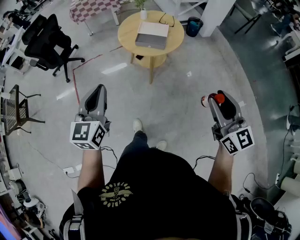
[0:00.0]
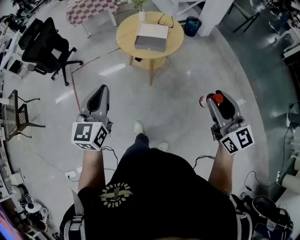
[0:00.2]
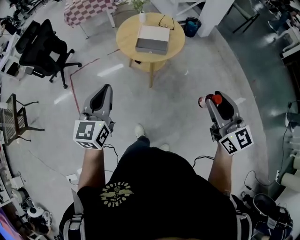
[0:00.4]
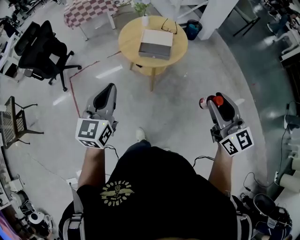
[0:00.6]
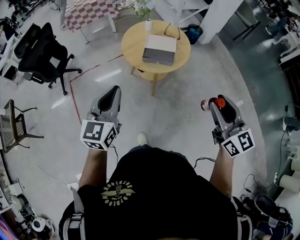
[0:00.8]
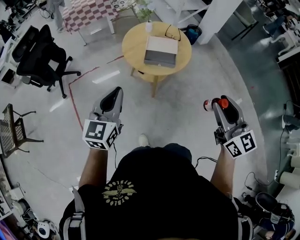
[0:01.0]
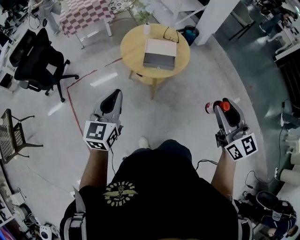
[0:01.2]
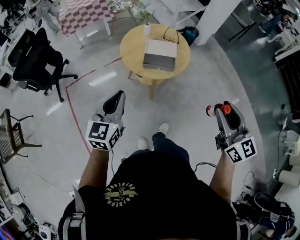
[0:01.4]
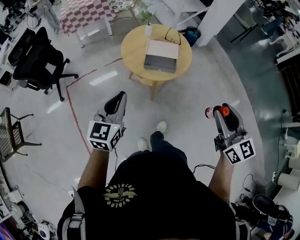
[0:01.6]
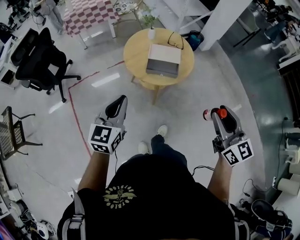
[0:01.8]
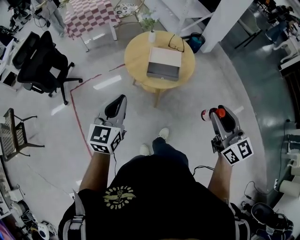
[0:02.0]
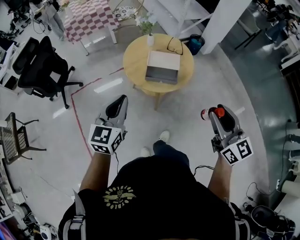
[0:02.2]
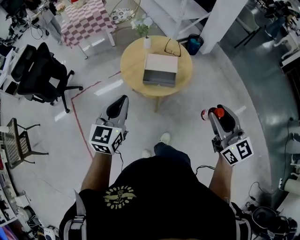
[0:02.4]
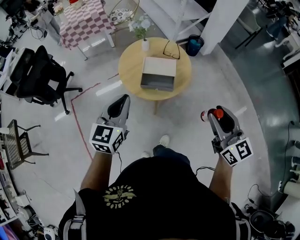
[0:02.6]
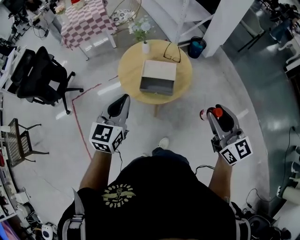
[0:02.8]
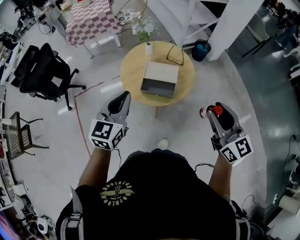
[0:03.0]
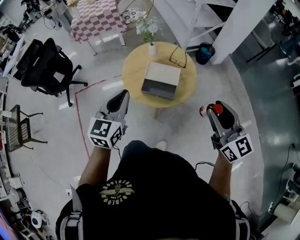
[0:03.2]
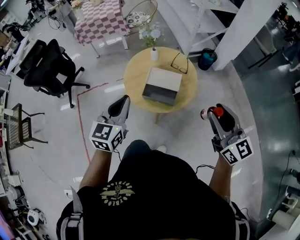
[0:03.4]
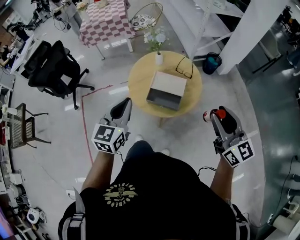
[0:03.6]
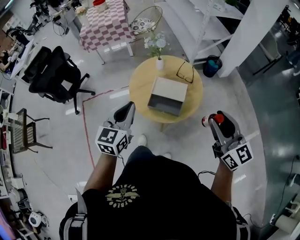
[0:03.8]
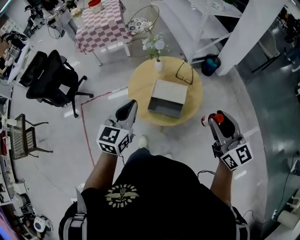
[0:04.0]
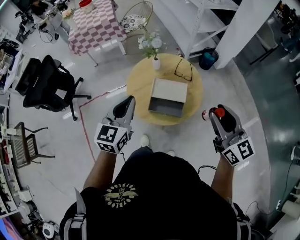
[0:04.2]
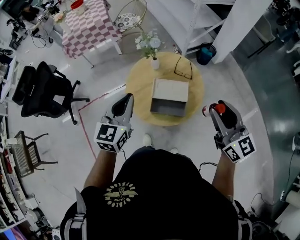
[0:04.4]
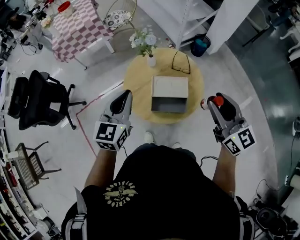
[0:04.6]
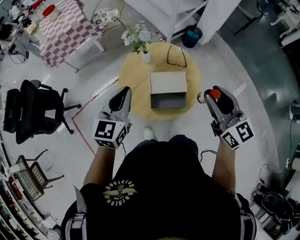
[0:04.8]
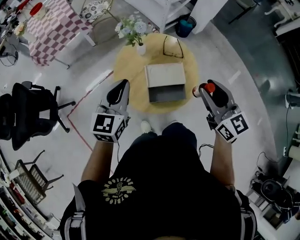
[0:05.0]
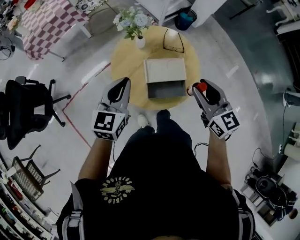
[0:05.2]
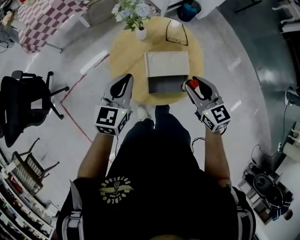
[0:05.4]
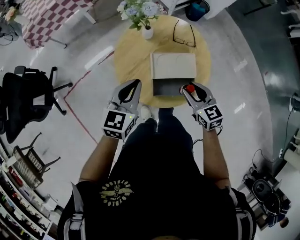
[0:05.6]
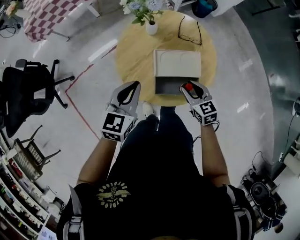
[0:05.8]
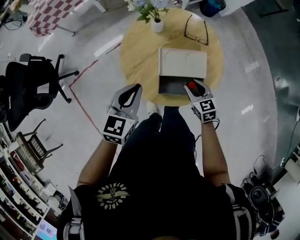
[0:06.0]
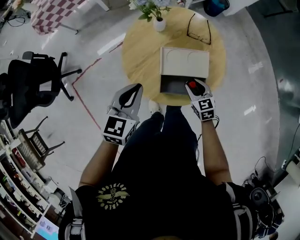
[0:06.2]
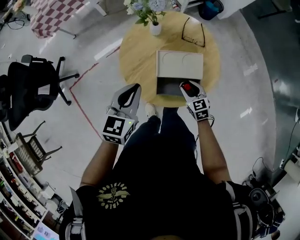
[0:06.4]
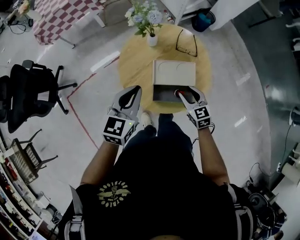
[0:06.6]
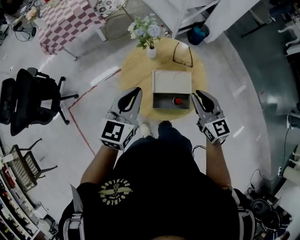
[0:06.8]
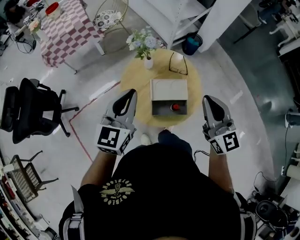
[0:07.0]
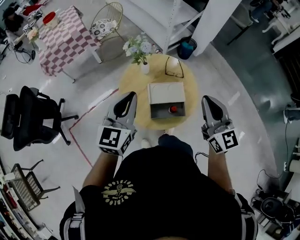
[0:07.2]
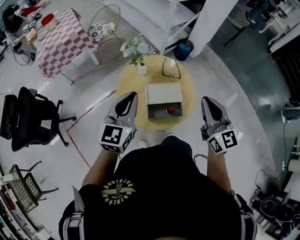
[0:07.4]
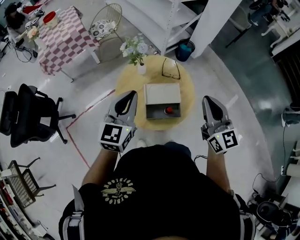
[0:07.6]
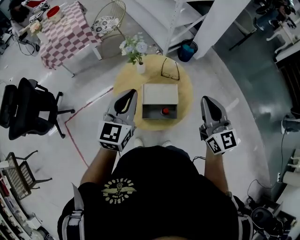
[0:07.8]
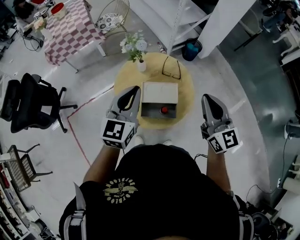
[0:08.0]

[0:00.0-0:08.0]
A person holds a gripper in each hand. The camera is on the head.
0:00.0 to 0:01.6: The left gripper travels forward by some 25 cm; the right gripper is displaced forward and to the left by about 25 cm.
0:01.6 to 0:03.2: The grippers both shift forward and to the right by roughly 20 cm.
0:03.2 to 0:04.8: The left gripper shifts some 20 cm forward, while the right gripper is displaced forward and to the left by about 20 cm.
0:04.8 to 0:06.4: The left gripper heads downward, covering approximately 15 cm. Meanwhile the right gripper moves downward, approximately 40 cm, and points its fingers roughly 40 degrees further downward.
0:06.4 to 0:08.0: The left gripper travels upward and to the right by about 20 cm, and turns by some 20 degrees. Meanwhile the right gripper is displaced upward by about 40 cm, tips its fingers upward by approximately 40 degrees, and closes its fingers.

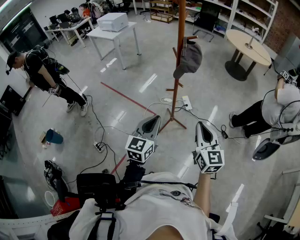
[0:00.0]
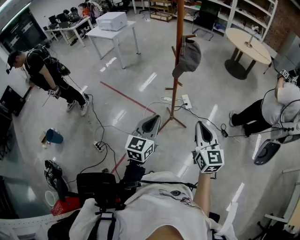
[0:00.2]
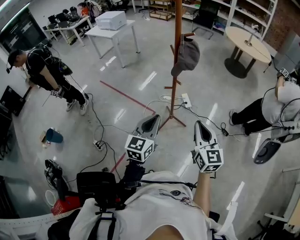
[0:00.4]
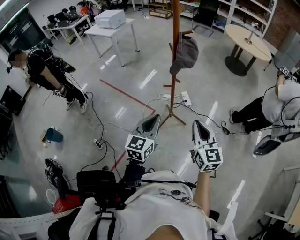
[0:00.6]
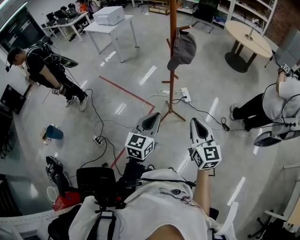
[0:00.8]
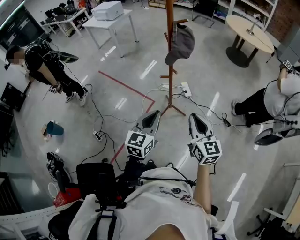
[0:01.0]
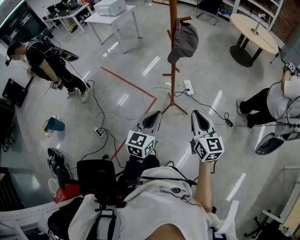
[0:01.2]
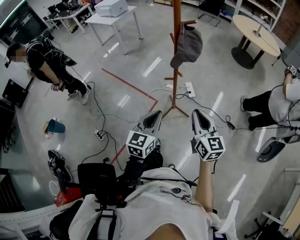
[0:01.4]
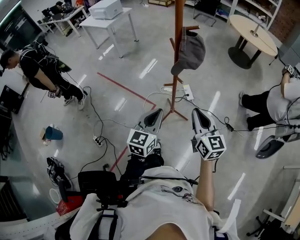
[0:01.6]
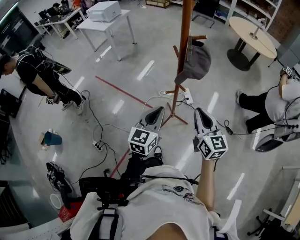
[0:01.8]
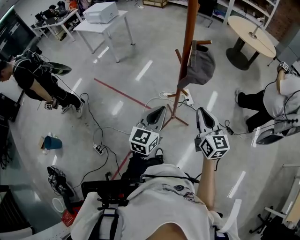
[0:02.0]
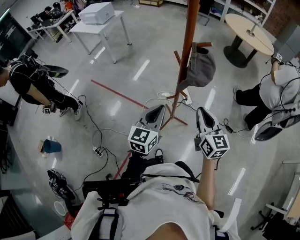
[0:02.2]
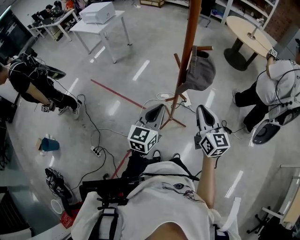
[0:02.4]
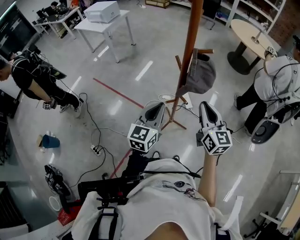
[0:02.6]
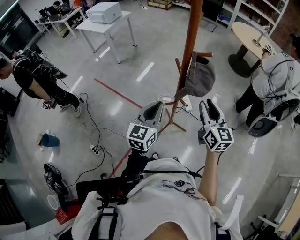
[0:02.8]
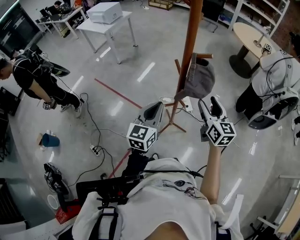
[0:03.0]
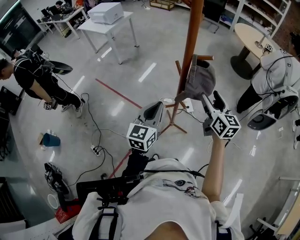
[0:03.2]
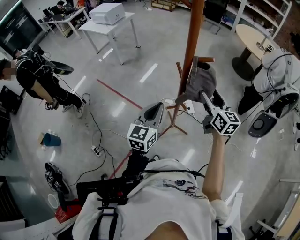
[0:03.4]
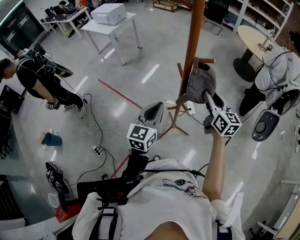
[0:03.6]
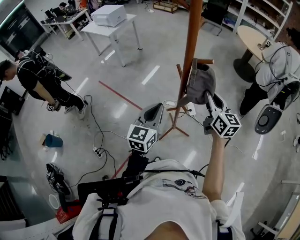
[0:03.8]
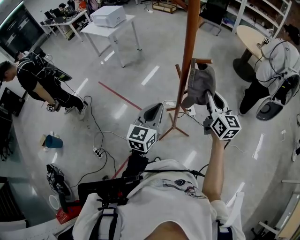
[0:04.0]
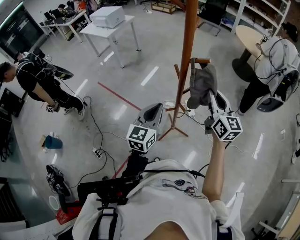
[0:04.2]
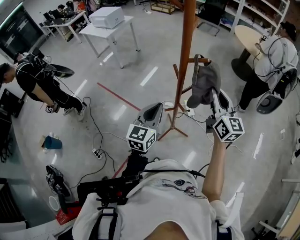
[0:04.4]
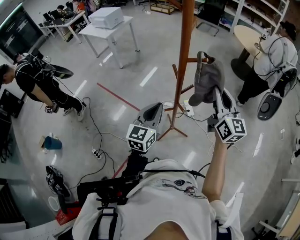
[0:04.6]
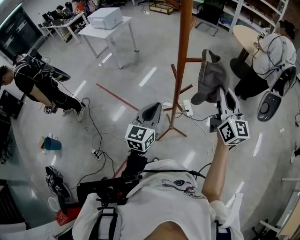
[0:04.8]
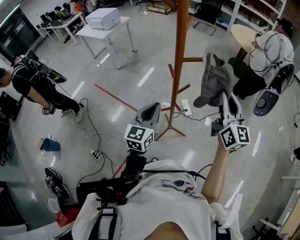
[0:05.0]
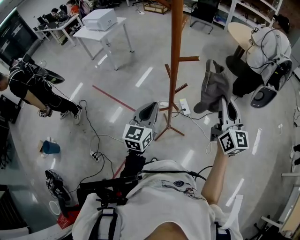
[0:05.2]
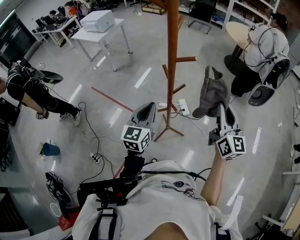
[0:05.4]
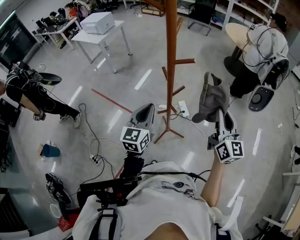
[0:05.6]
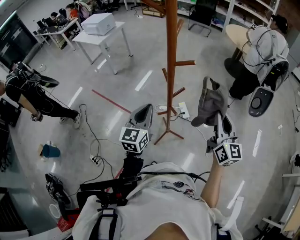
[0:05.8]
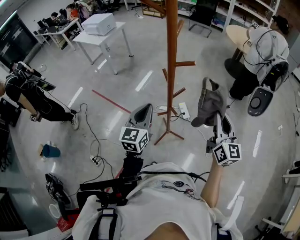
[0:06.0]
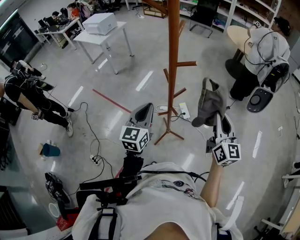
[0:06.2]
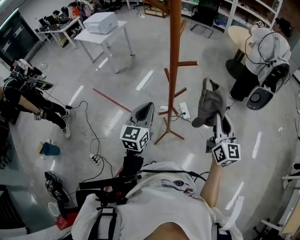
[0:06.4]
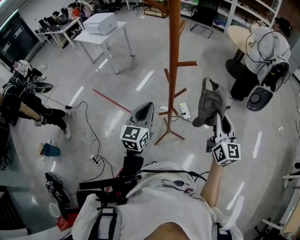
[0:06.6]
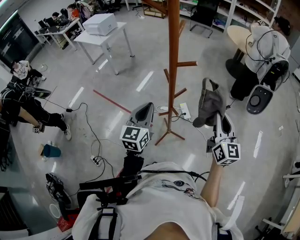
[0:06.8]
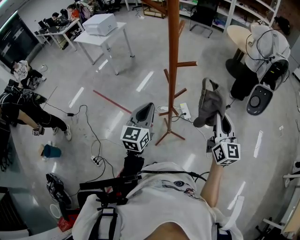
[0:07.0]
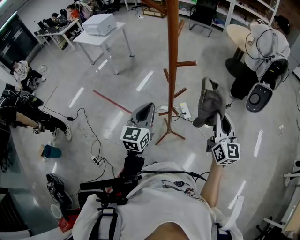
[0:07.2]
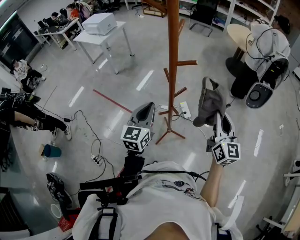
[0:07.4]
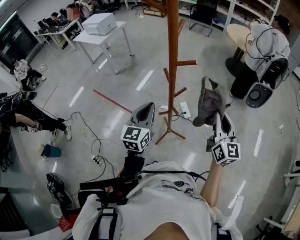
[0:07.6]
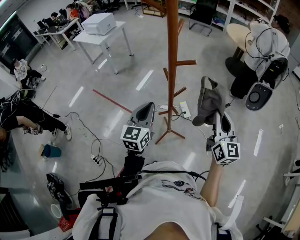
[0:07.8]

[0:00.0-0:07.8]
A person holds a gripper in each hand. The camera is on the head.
0:00.0 to 0:01.6: Both grippers travel together forward, approximately 10 cm.
0:01.6 to 0:03.2: Both grippers move forward, roughly 20 cm. The right gripper opens up.
0:03.2 to 0:04.6: The right gripper travels upward by approximately 10 cm, and closes its fingers.
0:04.6 to 0:06.2: The right gripper heads to the right and backward, covering approximately 10 cm.
0:06.2 to 0:07.8: The two grippers keep their place.

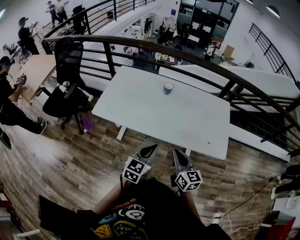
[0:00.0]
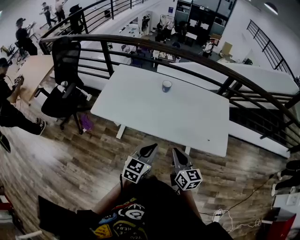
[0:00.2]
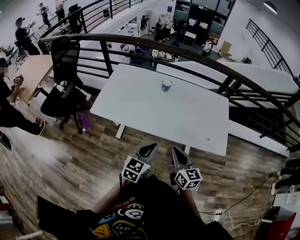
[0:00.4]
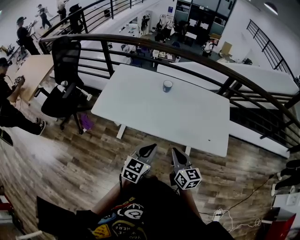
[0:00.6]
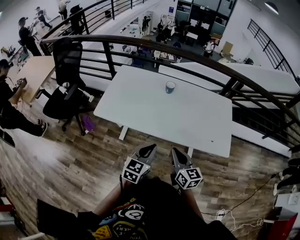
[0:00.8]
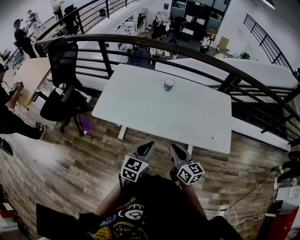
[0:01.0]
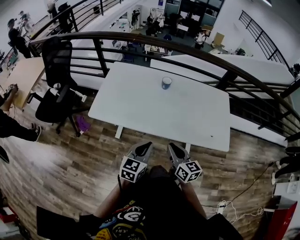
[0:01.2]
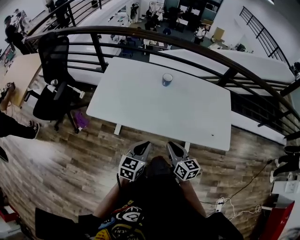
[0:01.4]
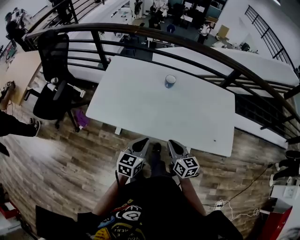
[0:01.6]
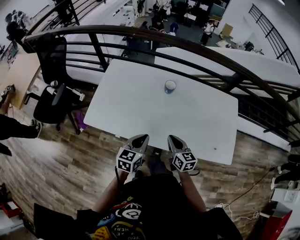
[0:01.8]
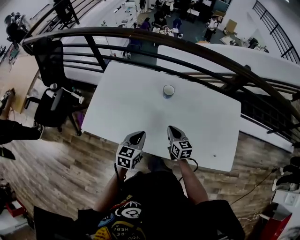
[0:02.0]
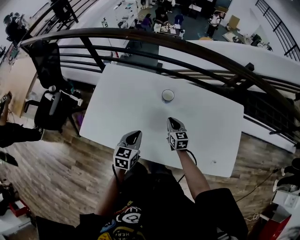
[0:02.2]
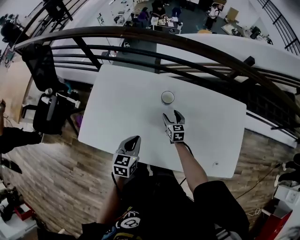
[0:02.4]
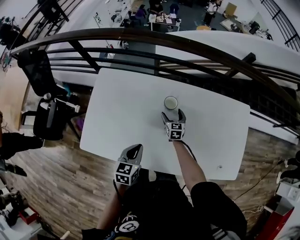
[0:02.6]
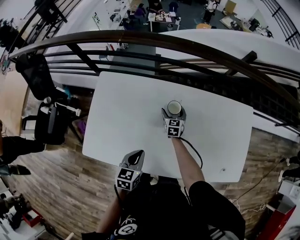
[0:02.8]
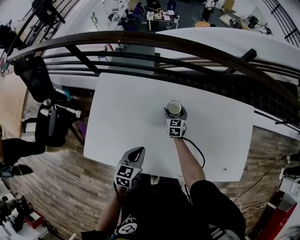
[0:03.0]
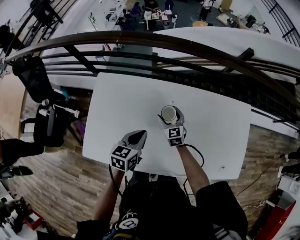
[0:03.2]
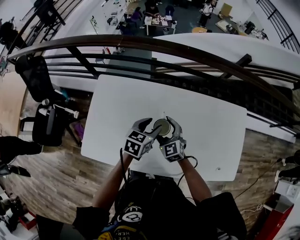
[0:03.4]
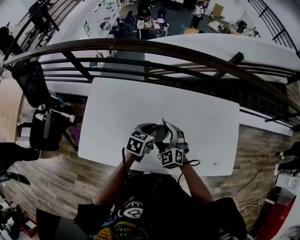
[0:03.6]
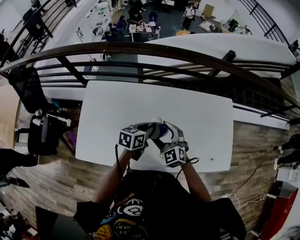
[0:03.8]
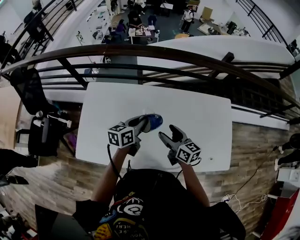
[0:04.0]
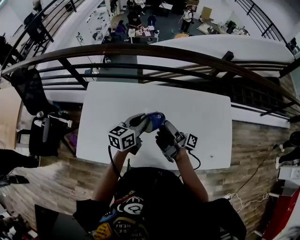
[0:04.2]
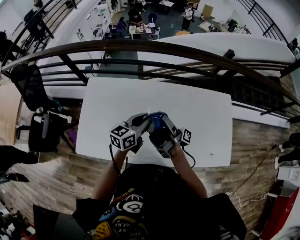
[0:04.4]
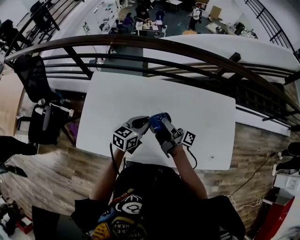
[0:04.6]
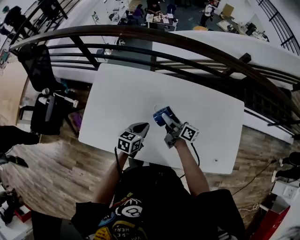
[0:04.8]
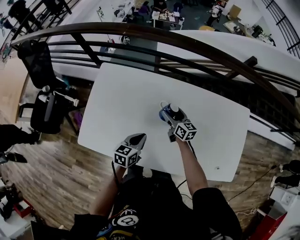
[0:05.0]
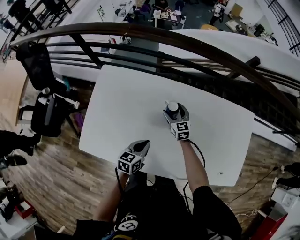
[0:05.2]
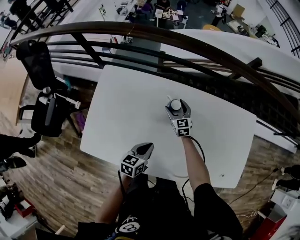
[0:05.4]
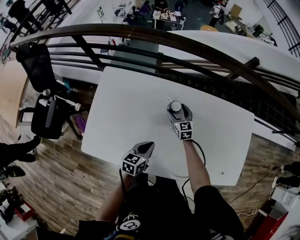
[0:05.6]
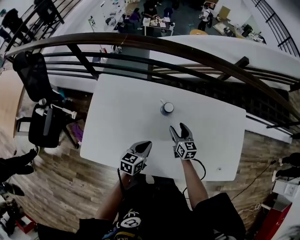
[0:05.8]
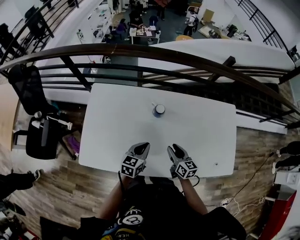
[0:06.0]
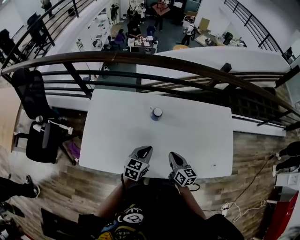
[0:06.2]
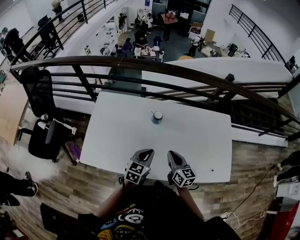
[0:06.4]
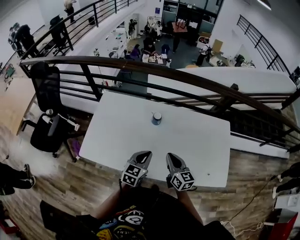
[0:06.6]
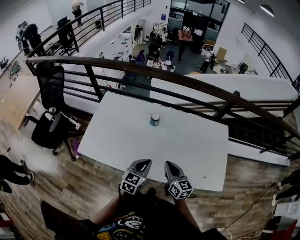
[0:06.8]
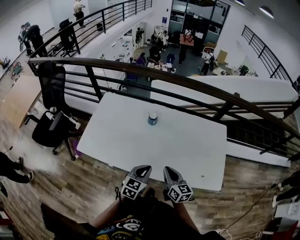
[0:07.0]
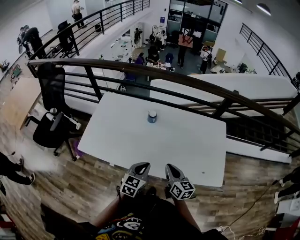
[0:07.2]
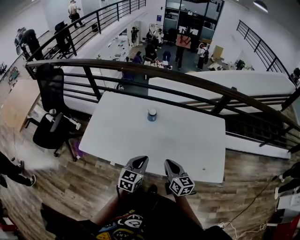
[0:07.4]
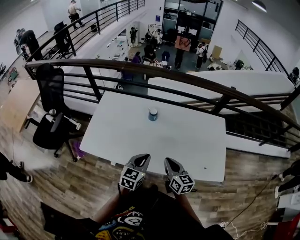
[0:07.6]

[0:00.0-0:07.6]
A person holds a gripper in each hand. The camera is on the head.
0:00.0 to 0:01.6: The right gripper shifts roughly 15 cm forward, downward and to the left, while the left gripper heads forward, to the left and downward, covering approximately 15 cm.
0:01.6 to 0:03.0: The right gripper moves forward and downward, approximately 50 cm, rotates some 30 degrees, and opens up; the left gripper travels forward by about 25 cm.
0:03.0 to 0:04.6: The left gripper is displaced to the right, upward and forward by roughly 15 cm, turns by approximately 20 degrees, and opens, then closes once more; the right gripper heads upward and backward, covering about 30 cm, and points its fingers roughly 50 degrees further upward.
0:04.6 to 0:06.0: The left gripper shifts roughly 10 cm downward and to the left, while the right gripper is displaced downward by roughly 15 cm, angles its fingers downward, by about 40 degrees, and closes its fingers.
0:06.0 to 0:07.6: The left gripper moves backward, upward and to the right, about 25 cm. Meanwhile the right gripper is displaced backward and upward by some 20 cm, and closes its fingers.
